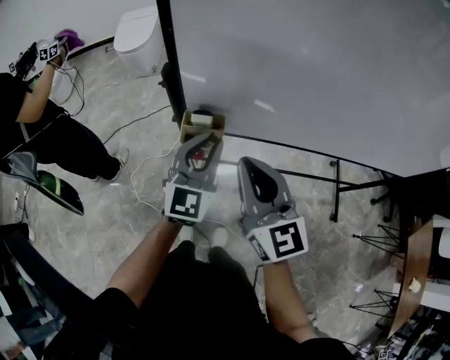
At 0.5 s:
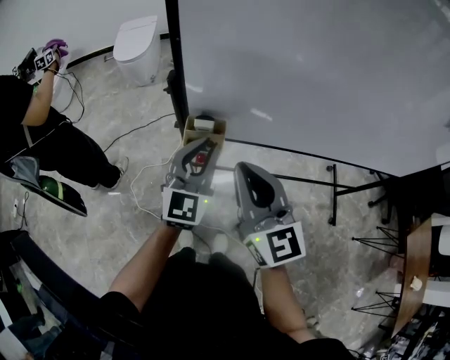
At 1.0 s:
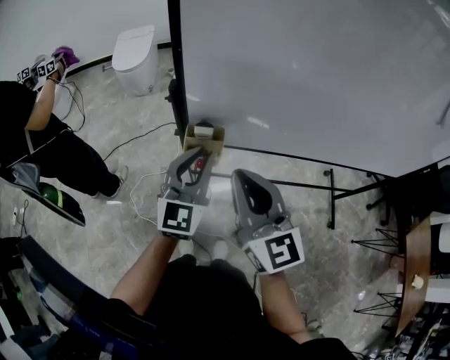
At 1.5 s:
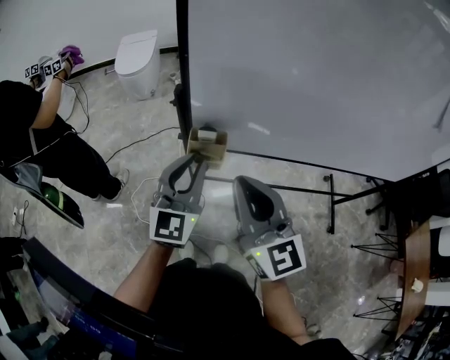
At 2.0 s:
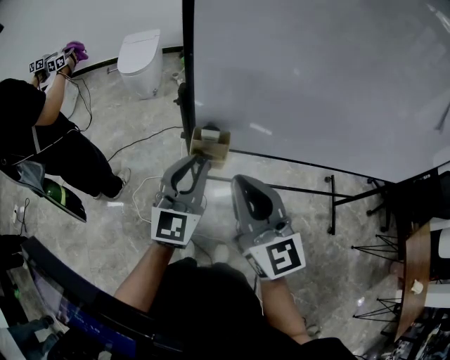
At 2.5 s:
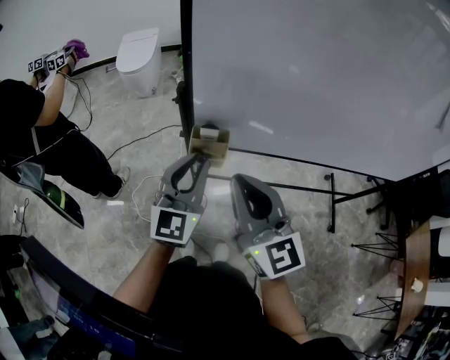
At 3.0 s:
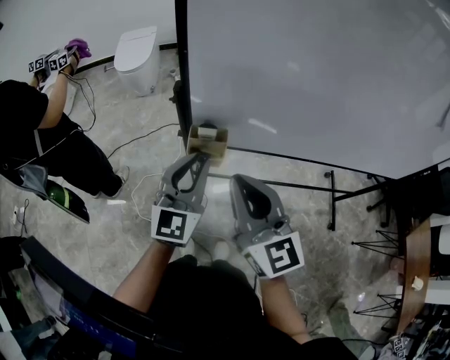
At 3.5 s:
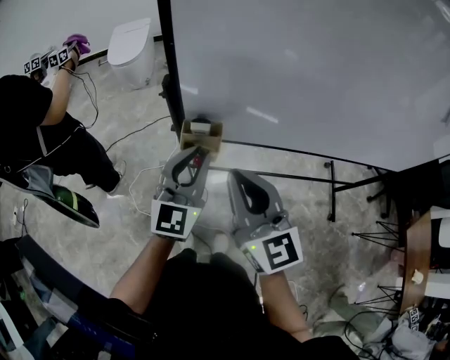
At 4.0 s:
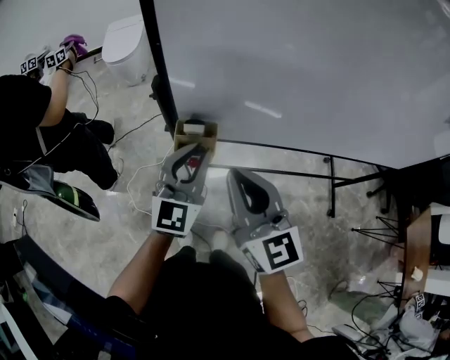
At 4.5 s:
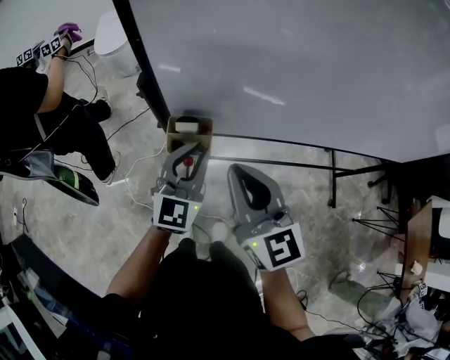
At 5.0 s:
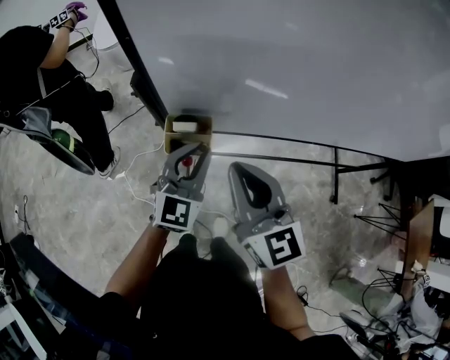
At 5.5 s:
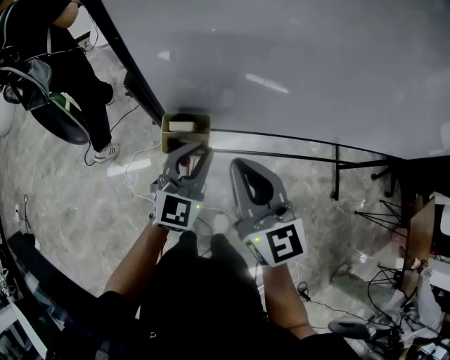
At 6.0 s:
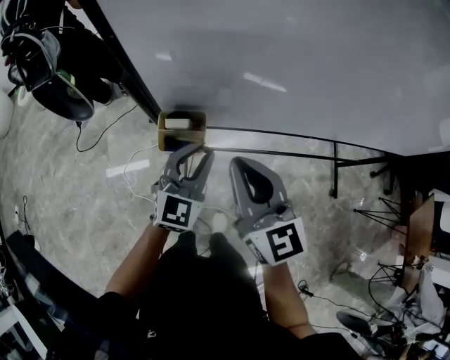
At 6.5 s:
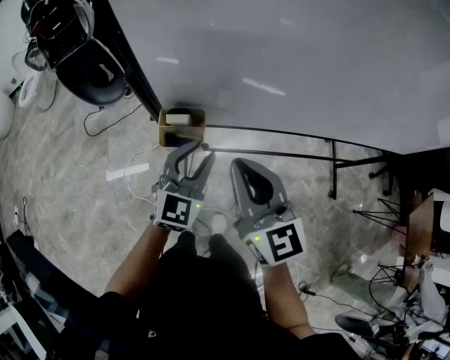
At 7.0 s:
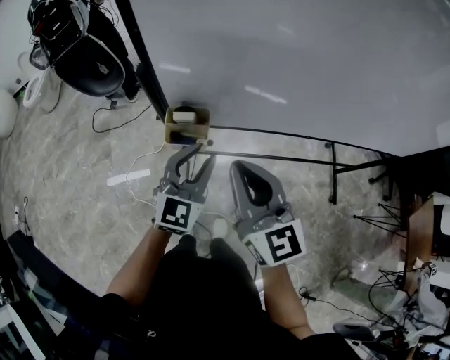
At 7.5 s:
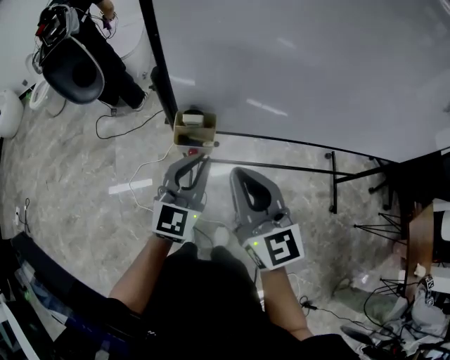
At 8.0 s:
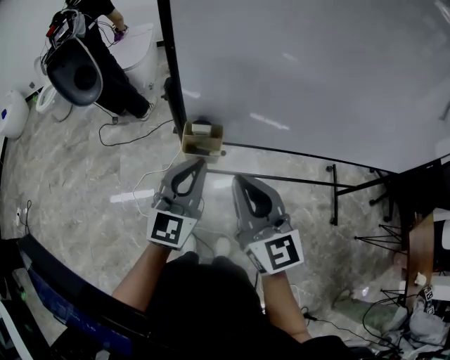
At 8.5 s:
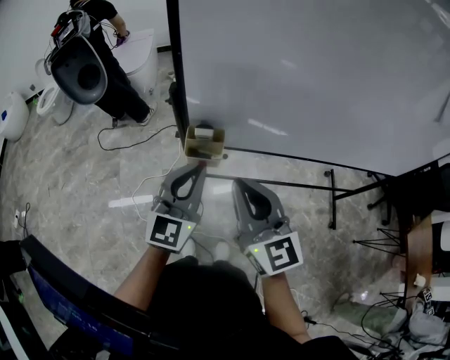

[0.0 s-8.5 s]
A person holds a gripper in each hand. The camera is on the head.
0.0 to 2.0 s: The left gripper goes some 10 cm to the left, upward and backward, while the right gripper shifts approximately 5 cm upward.
2.0 to 4.0 s: The left gripper shifts by some 5 cm, while the right gripper shifts by approximately 5 cm.
4.0 to 6.5 s: The left gripper is displaced downward by about 5 cm, while the right gripper ends up some 5 cm from where it was.
6.5 to 8.5 s: The left gripper travels upward, backward and to the left by roughly 15 cm, and closes, while the right gripper moves backward, about 5 cm.

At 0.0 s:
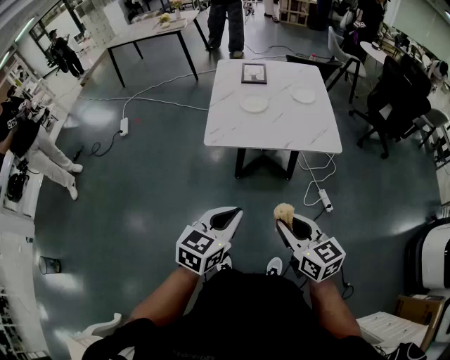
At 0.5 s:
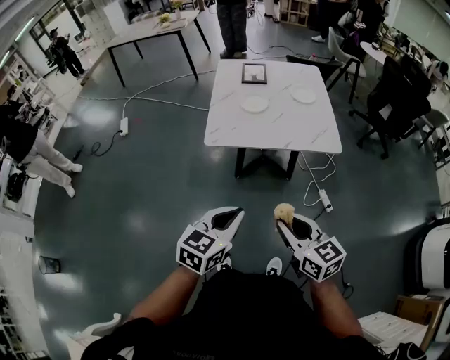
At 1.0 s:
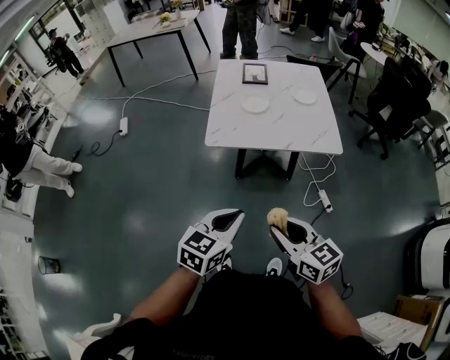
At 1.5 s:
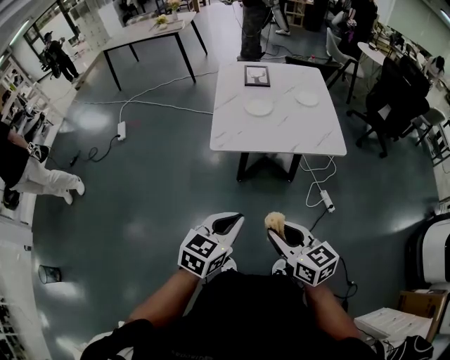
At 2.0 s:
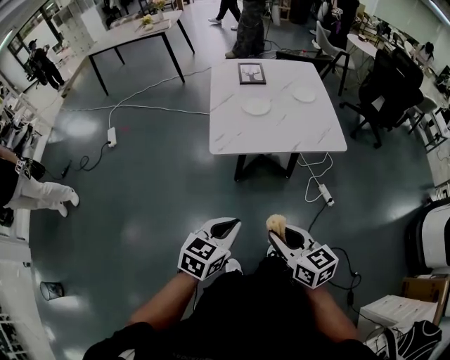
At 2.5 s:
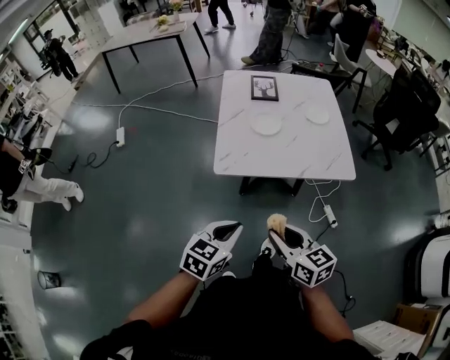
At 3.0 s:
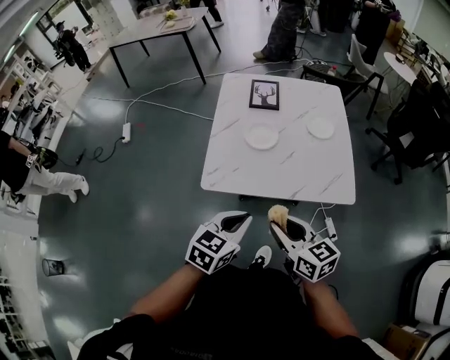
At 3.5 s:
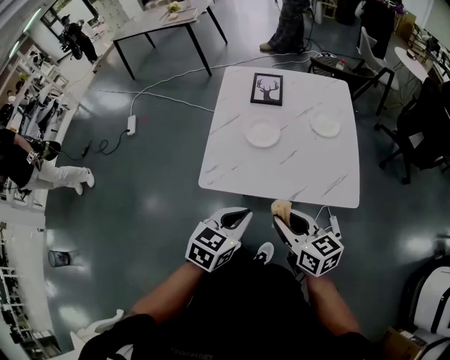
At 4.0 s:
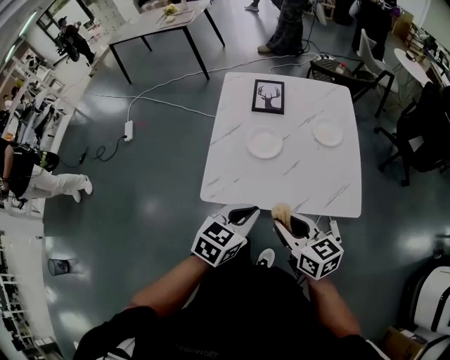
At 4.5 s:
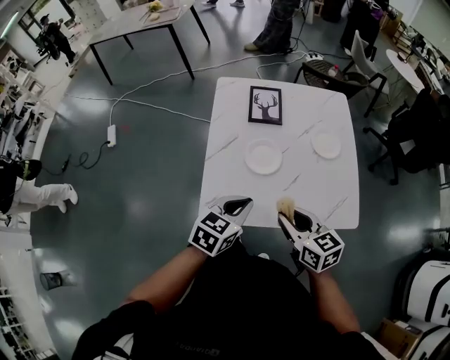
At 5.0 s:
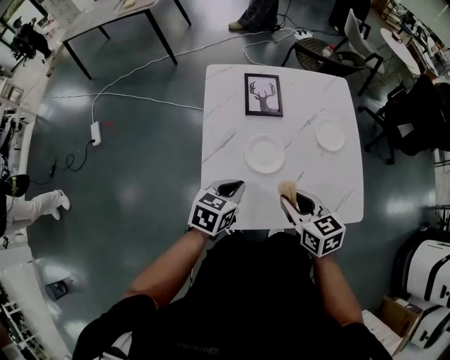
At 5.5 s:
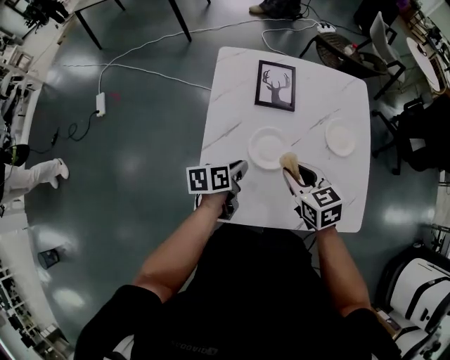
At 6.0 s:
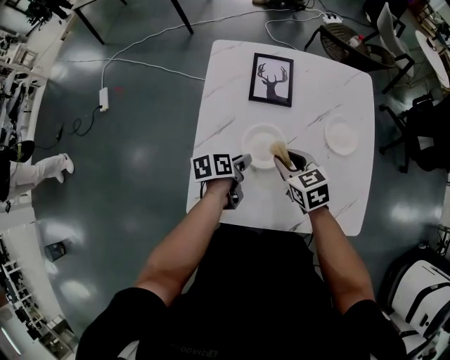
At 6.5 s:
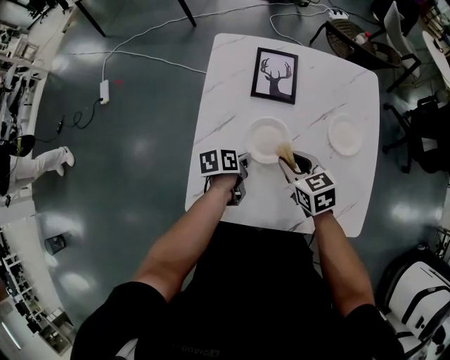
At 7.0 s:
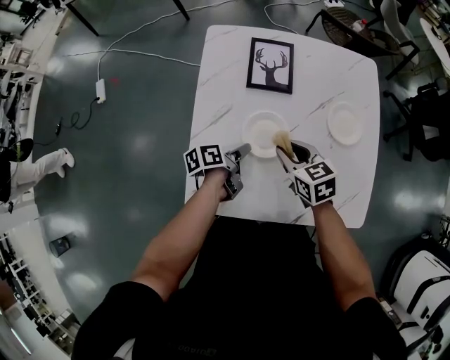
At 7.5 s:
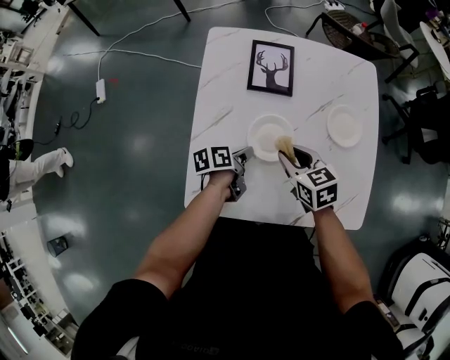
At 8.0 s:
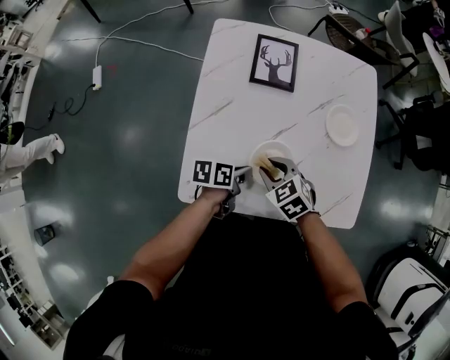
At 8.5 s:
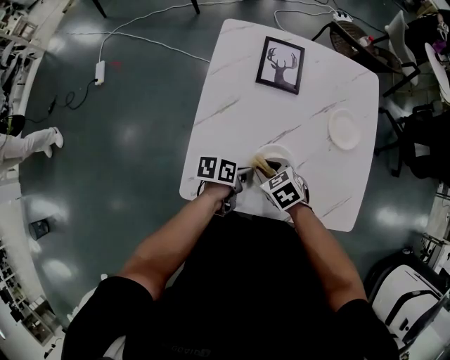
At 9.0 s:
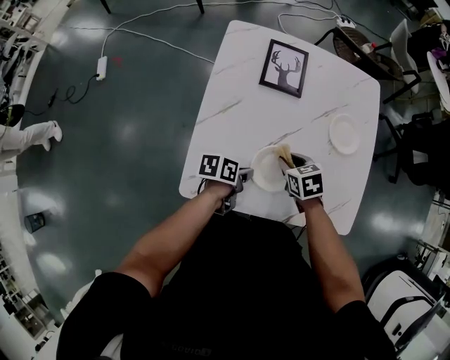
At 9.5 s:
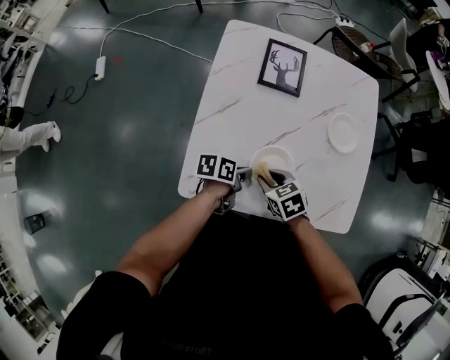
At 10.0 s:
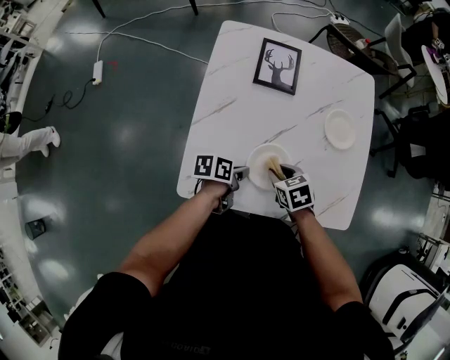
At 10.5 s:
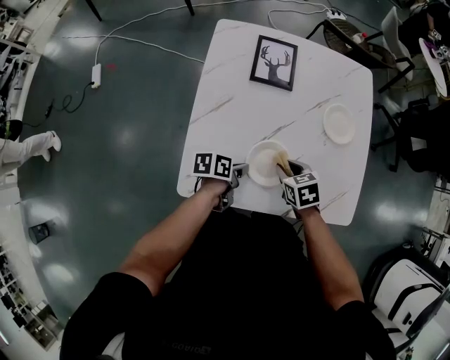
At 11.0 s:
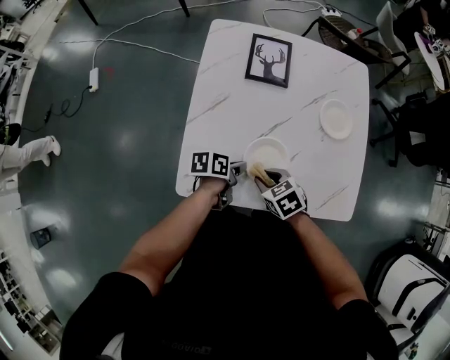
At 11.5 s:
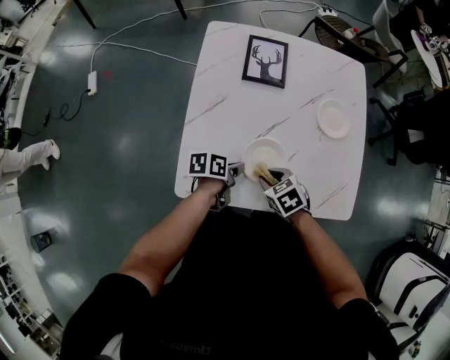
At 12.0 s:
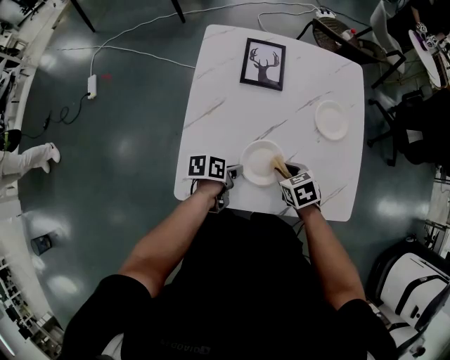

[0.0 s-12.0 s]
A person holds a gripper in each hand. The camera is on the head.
0.0 to 2.0 s: Both grippers travel together to the left, roughly 10 cm.
2.0 to 4.0 s: The right gripper goes some 30 cm forward. Meanwhile the left gripper moves forward and to the right, approximately 30 cm.
4.0 to 6.0 s: Both grippers travel together forward and downward, about 35 cm. The left gripper twists about 60 degrees counterclockwise, seen from behind, and opens its fingers, while the right gripper changes its angle by roughly 30 degrees.
6.0 to 8.0 s: The two grippers go approximately 10 cm backward. The left gripper closes up; the right gripper swivels some 20 degrees.
8.0 to 10.0 s: The right gripper moves about 5 cm forward and comes back, and rotates some 20 degrees.
10.0 to 12.0 s: The grippers move only a little.

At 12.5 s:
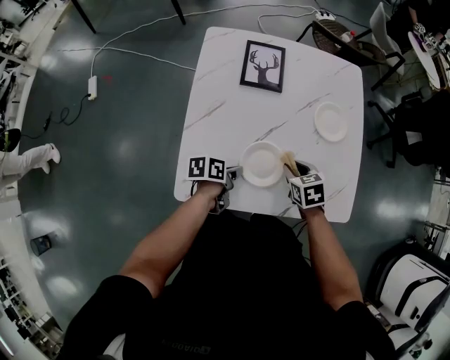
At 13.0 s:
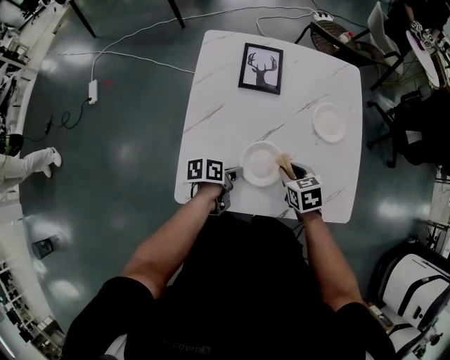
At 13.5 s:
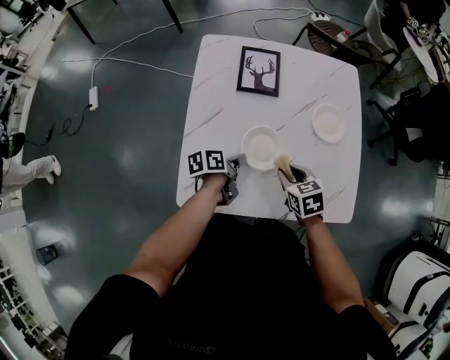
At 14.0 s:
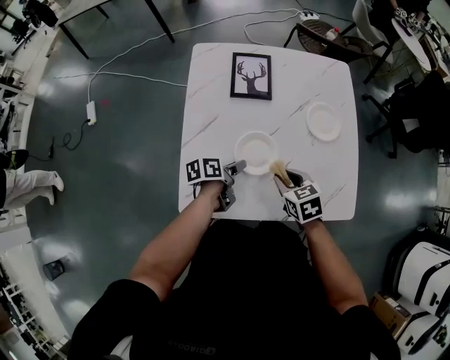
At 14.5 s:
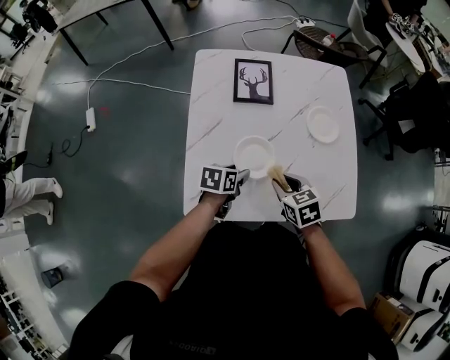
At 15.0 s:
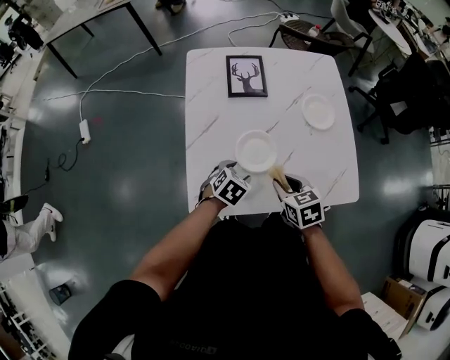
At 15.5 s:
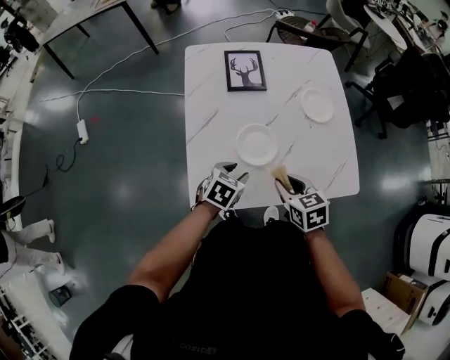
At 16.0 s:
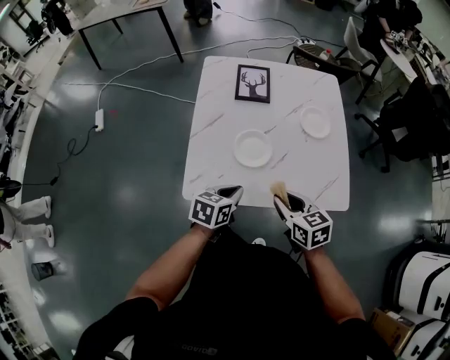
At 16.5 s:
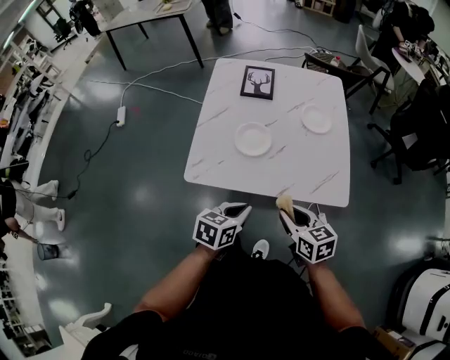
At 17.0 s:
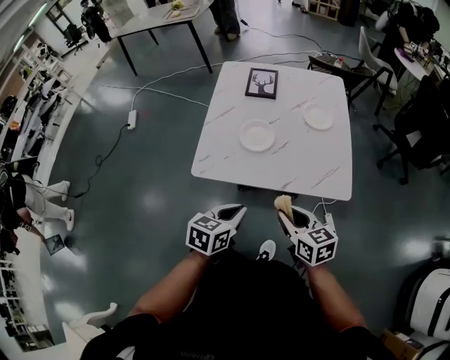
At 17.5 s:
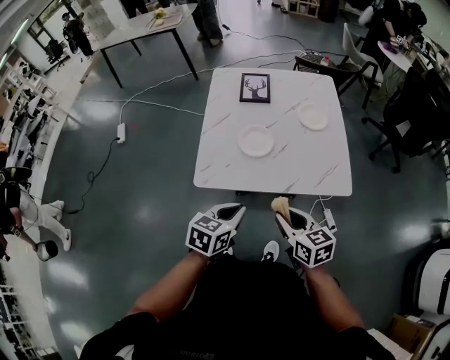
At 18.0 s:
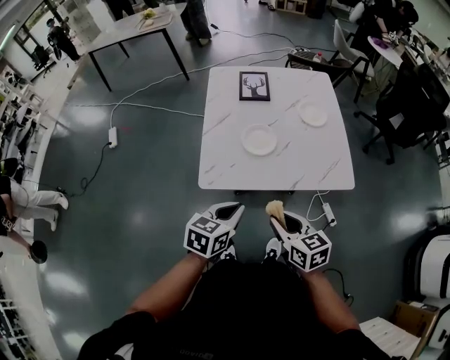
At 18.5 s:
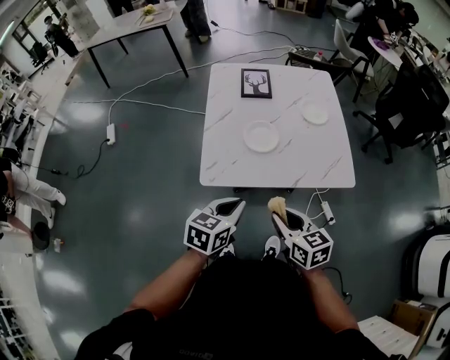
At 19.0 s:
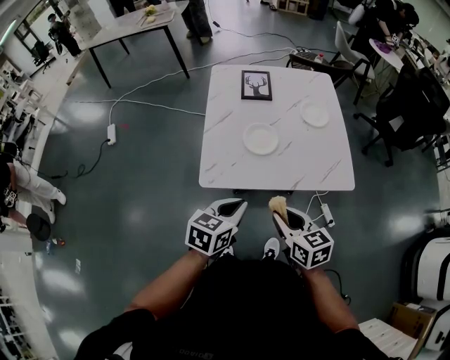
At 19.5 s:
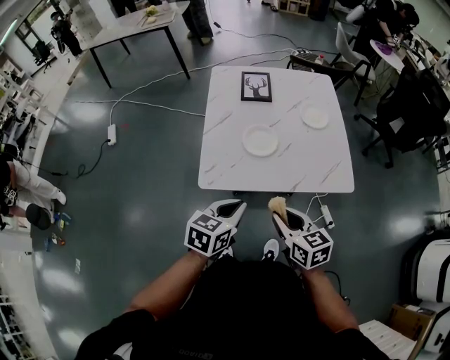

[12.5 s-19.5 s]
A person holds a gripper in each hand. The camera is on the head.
12.5 to 14.5 s: The left gripper turns by about 30 degrees, and opens. Meanwhile the right gripper shifts some 5 cm upward.
14.5 to 16.0 s: The grippers both shift backward and upward by approximately 15 cm. The left gripper closes its fingers.
16.0 to 17.5 s: The right gripper moves backward, approximately 15 cm. The left gripper heads backward and upward, covering approximately 15 cm.
17.5 to 19.5 s: The right gripper shifts approximately 5 cm to the left.
